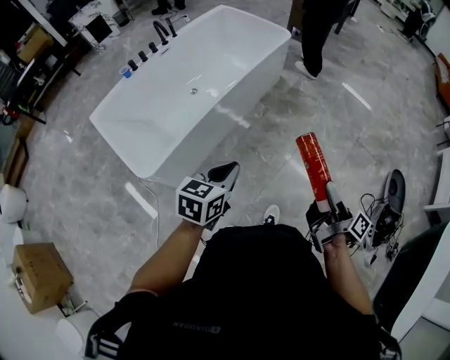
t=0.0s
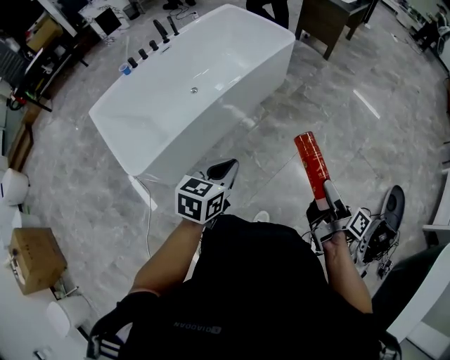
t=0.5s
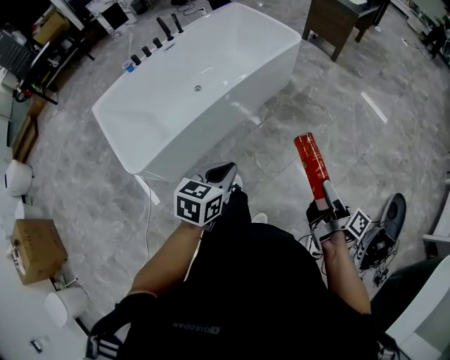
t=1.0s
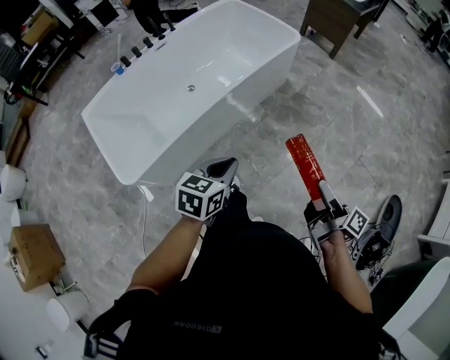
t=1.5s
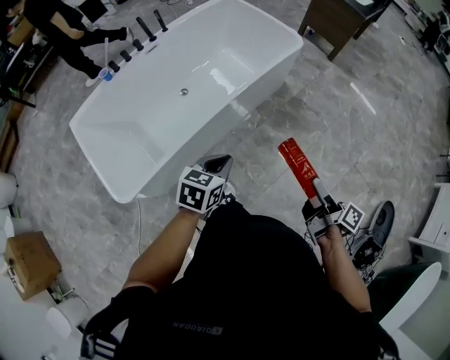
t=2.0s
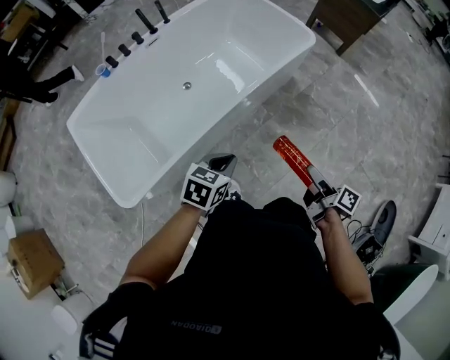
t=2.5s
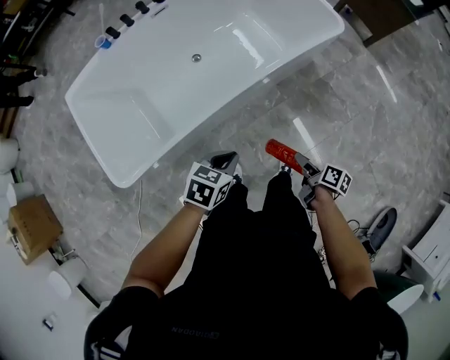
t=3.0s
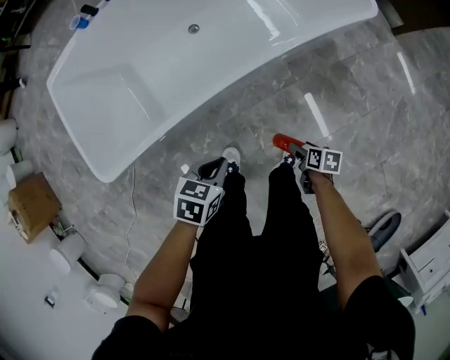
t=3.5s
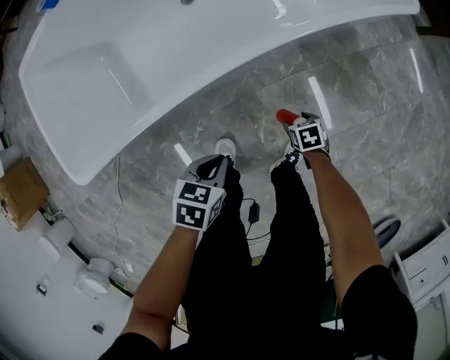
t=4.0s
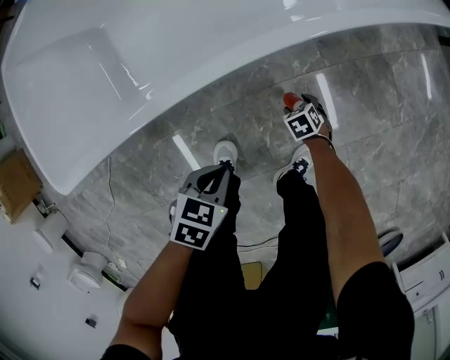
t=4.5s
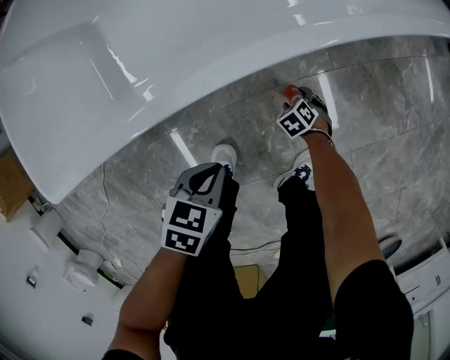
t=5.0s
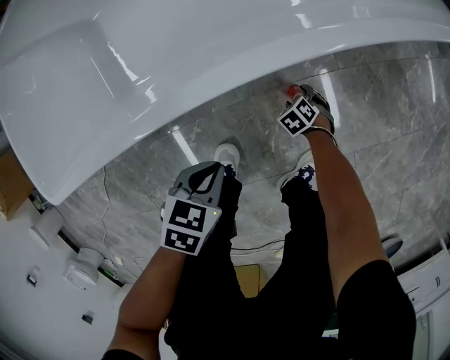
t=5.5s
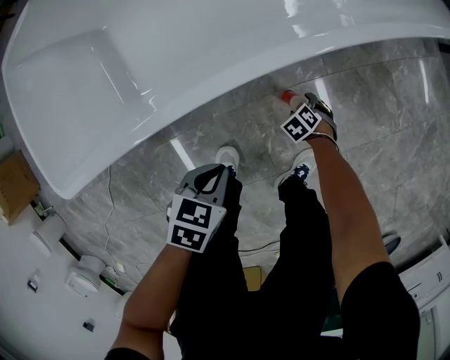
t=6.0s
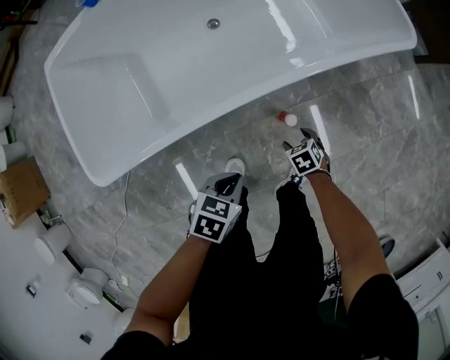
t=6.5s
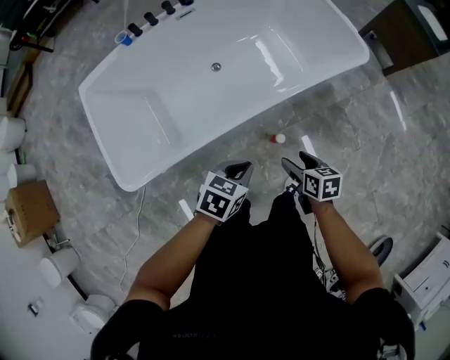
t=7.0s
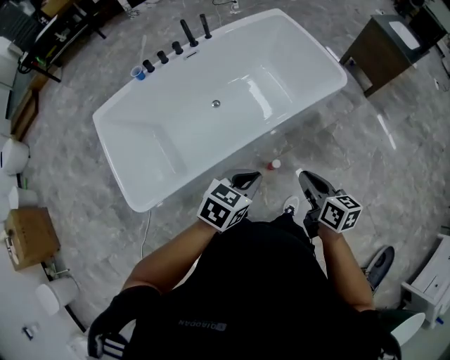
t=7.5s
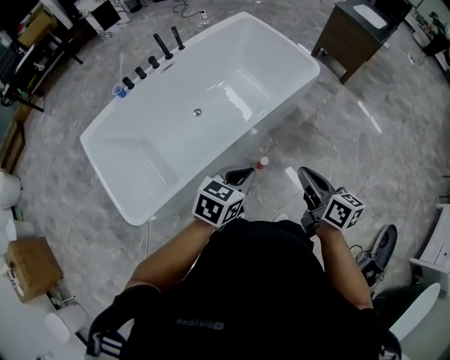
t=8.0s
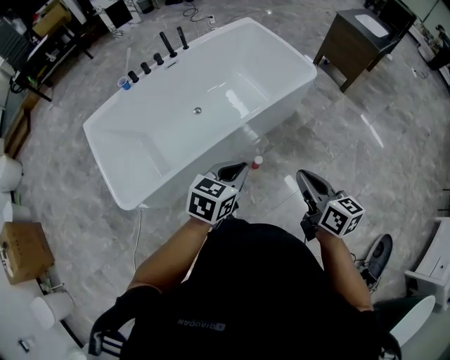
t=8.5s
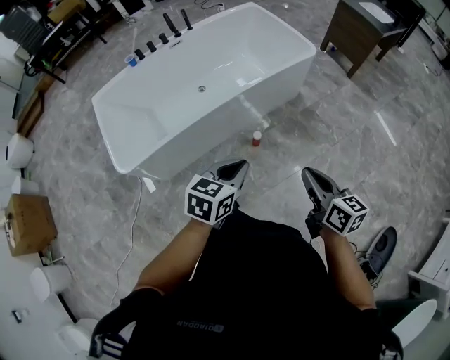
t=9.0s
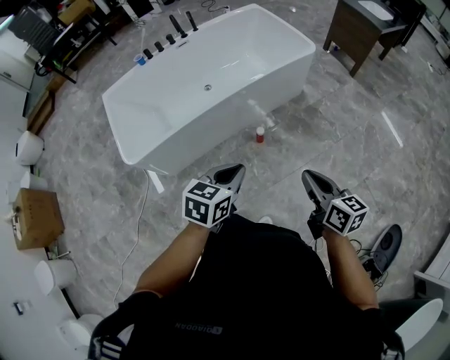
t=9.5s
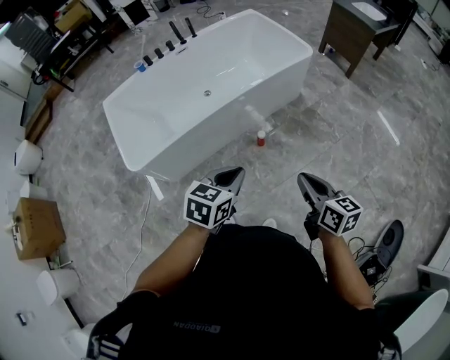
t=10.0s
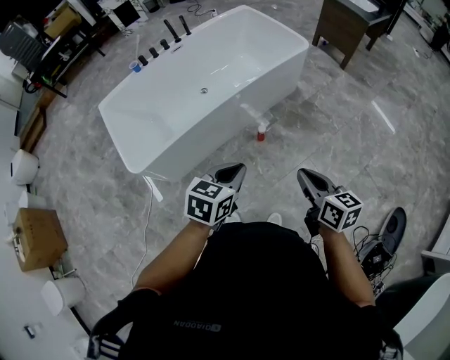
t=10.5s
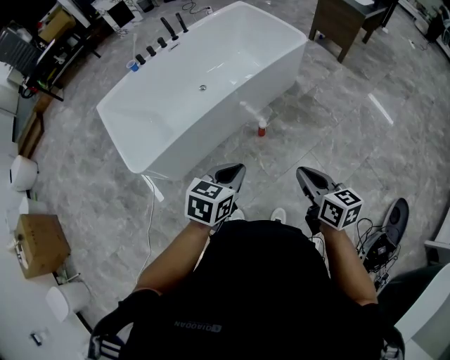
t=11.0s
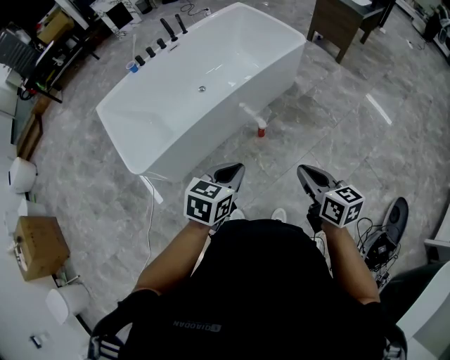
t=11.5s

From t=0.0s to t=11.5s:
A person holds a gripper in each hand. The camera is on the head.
From t=0.0s to t=2.0s: The left gripper ends up roughly 25 cm from where it was.
From t=2.0s to t=4.0s: The left gripper travels downward by some 35 cm, and turns by about 30 degrees.
From t=4.0s to t=6.0s: The left gripper travels downward by roughly 10 cm.
From t=6.0s to t=7.5s: The left gripper heads upward, covering some 40 cm, and changes its angle by about 30 degrees.
From t=7.5s to t=9.5s: The left gripper changes place by about 30 cm.
From t=9.5s to t=11.5s: The left gripper moves about 10 cm.

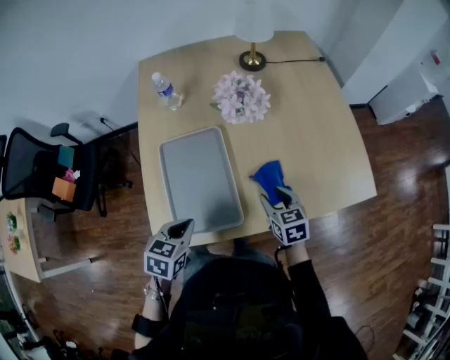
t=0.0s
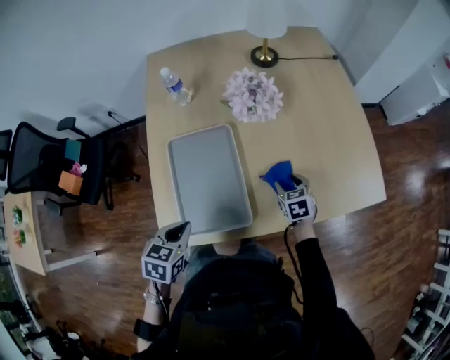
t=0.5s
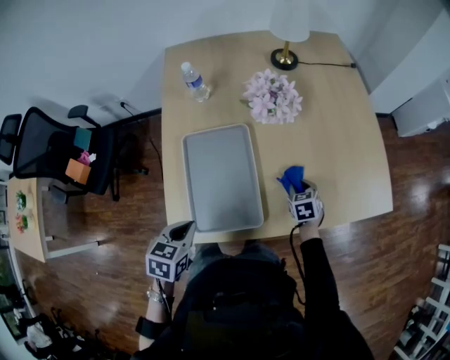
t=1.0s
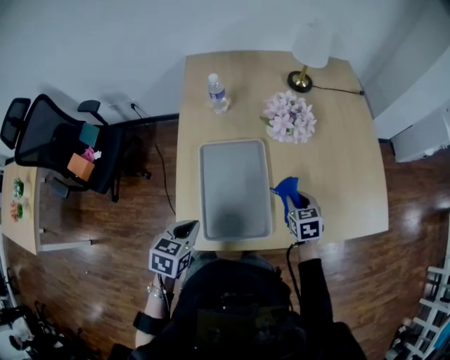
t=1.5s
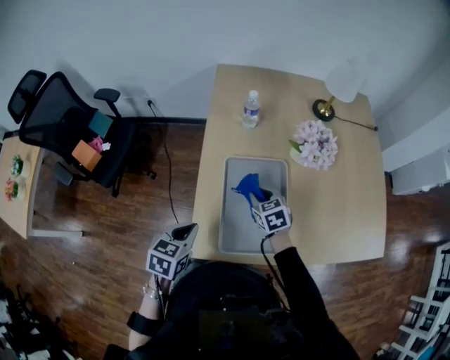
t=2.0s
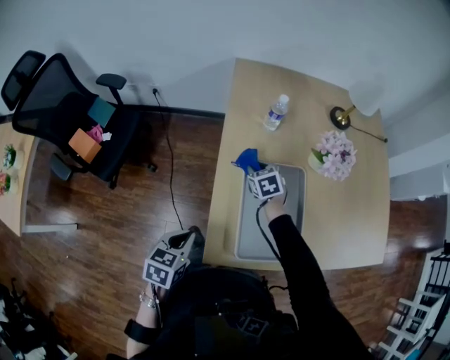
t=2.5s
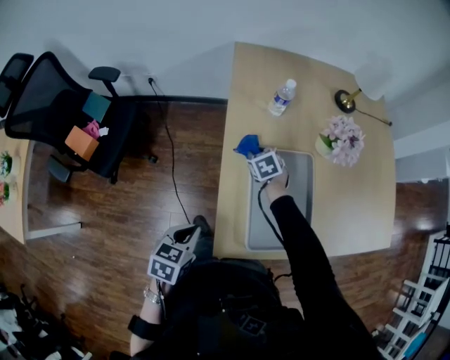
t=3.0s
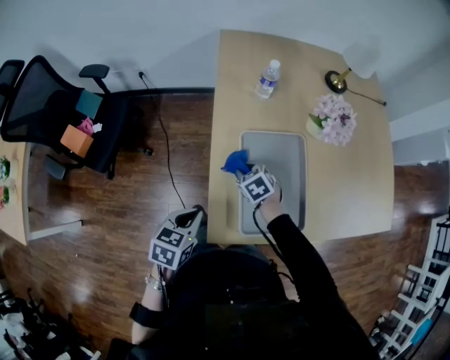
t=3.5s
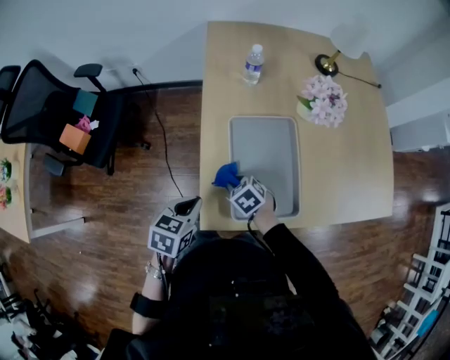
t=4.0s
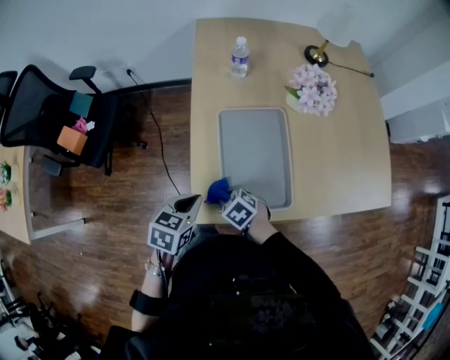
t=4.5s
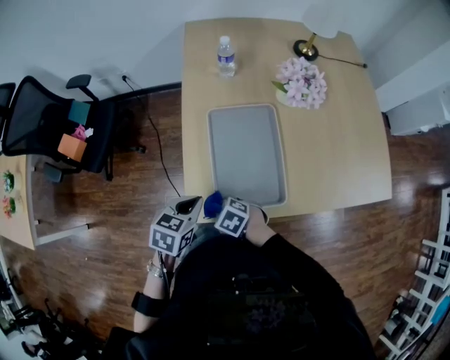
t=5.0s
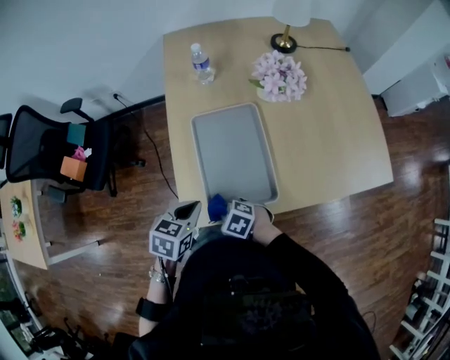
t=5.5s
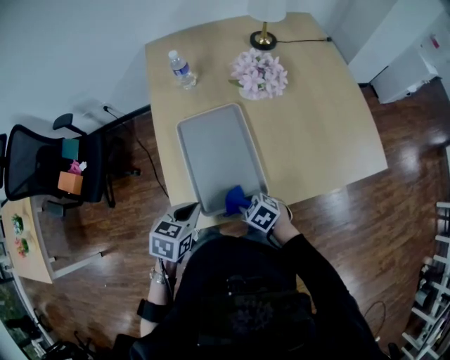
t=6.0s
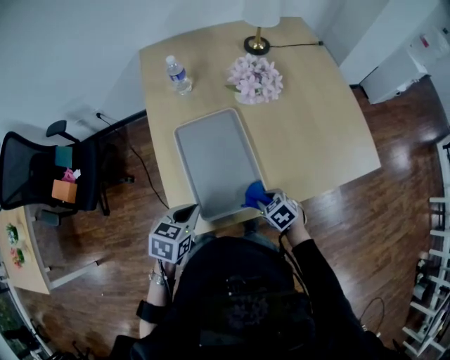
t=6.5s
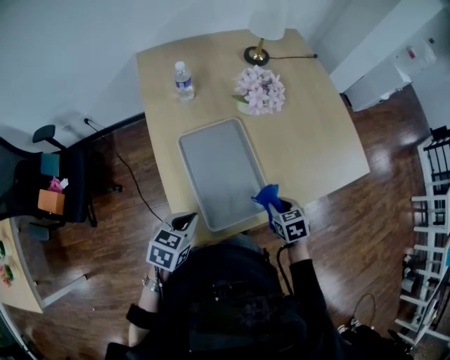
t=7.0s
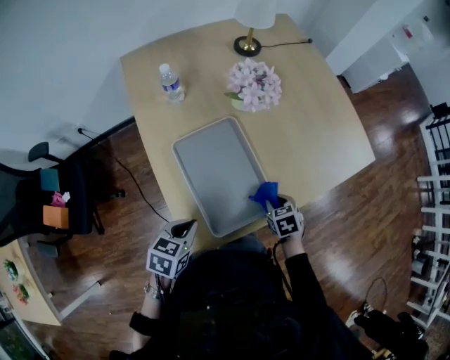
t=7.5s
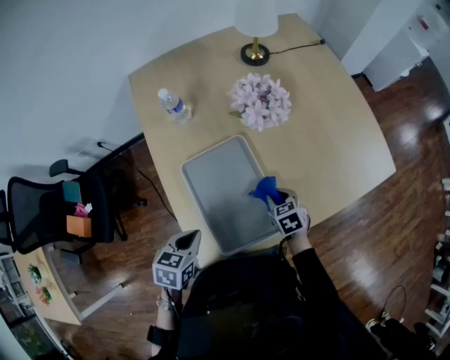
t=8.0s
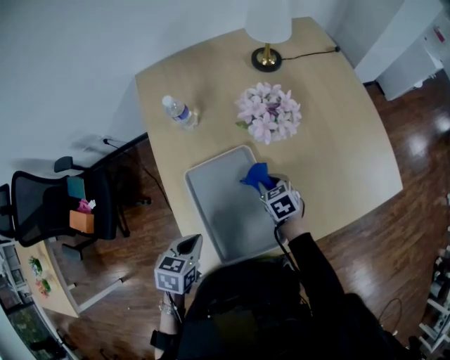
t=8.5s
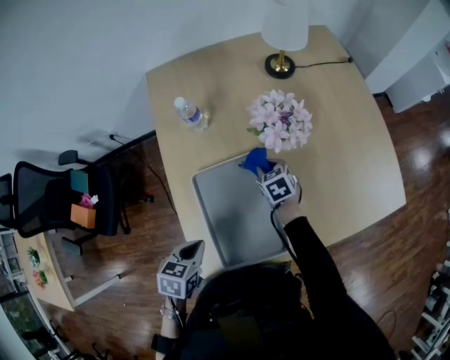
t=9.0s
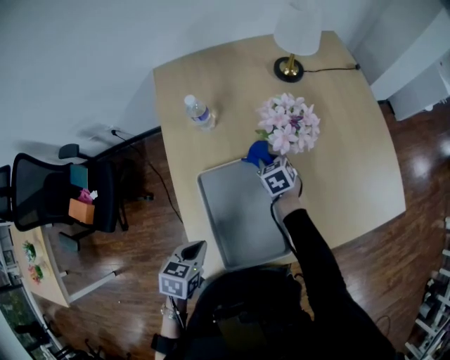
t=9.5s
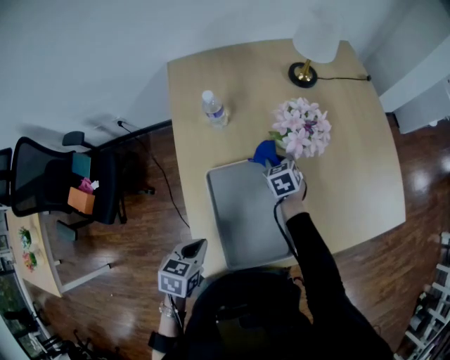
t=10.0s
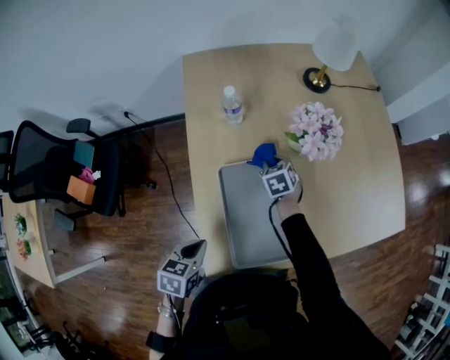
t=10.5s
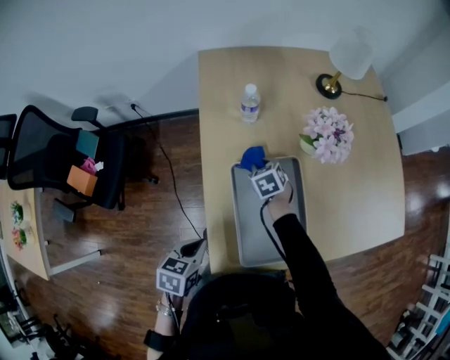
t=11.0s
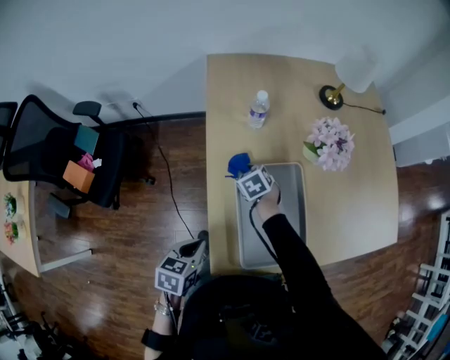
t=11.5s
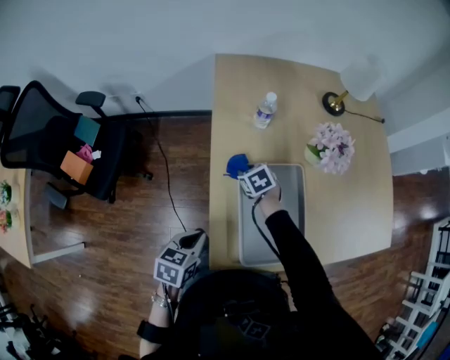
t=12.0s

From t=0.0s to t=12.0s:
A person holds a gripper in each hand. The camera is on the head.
From t=0.0s to t=2.0s: The right gripper shifts about 25 cm to the left, rotates approximately 20 degrees, and closes up; the left gripper goes roughly 20 cm to the left.
From t=2.0s to t=4.0s: The left gripper reaches roughly 10 cm to the left, then returns. The right gripper moves to the left, backward and downward, about 15 cm, and changes its angle by about 20 degrees.
From t=4.0s to t=6.0s: The right gripper ends up about 20 cm from where it was; the left gripper ends up some 15 cm from where it was.
From t=6.0s to t=8.0s: The right gripper changes place by roughly 20 cm, and rotates roughly 40 degrees. Meanwhile the left gripper changes place by about 10 cm.
From t=8.0s to t=10.0s: The right gripper travels forward and to the left by about 25 cm.
From t=10.0s to t=12.0s: The right gripper moves to the left, some 20 cm, and turns by about 20 degrees. The left gripper heads to the left, covering approximately 10 cm.

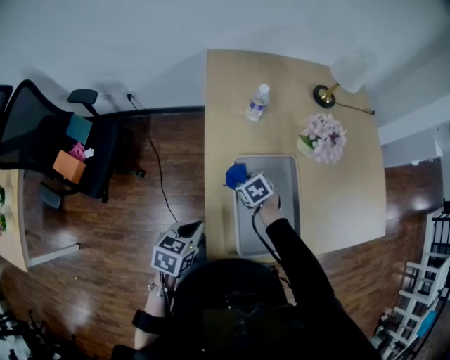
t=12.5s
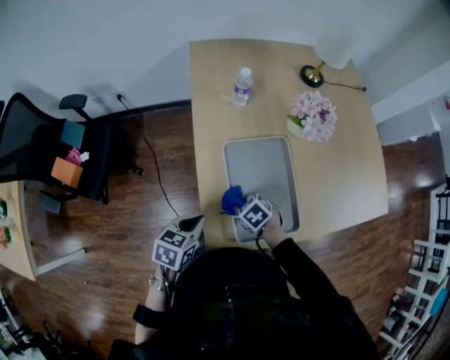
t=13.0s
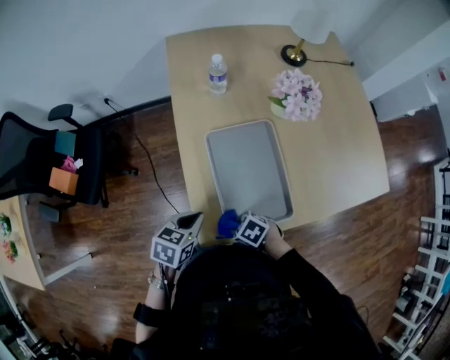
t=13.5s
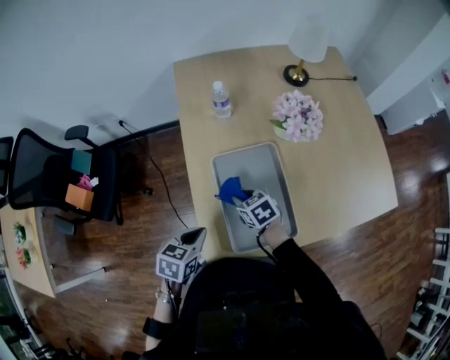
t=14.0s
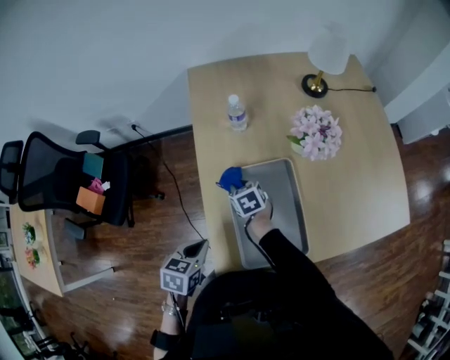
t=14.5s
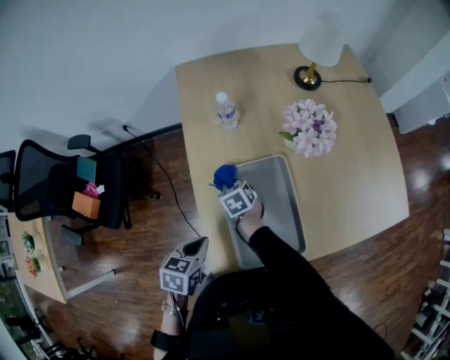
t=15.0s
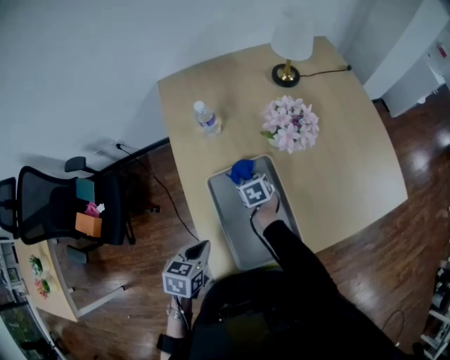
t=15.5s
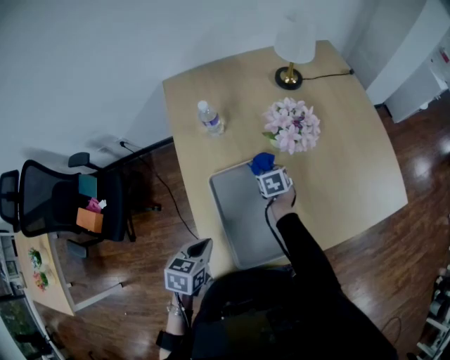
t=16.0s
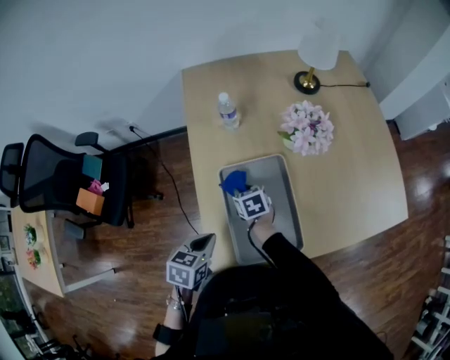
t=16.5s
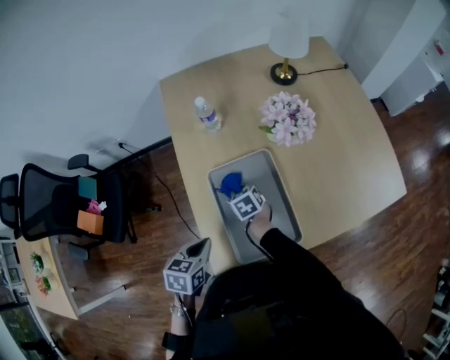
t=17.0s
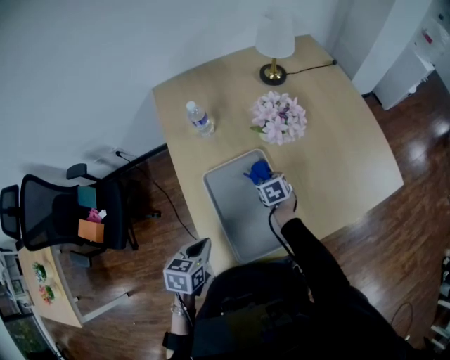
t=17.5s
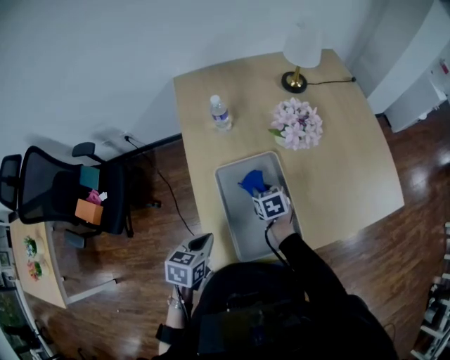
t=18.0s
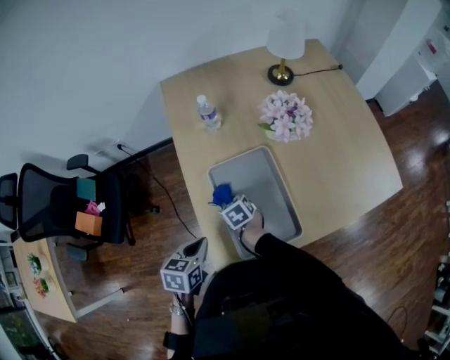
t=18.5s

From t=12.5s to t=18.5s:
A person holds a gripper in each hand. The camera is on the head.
From t=14.5s to t=16.5s: The right gripper reaches some 20 cm to the right, then returns.
From t=16.5s to t=18.5s: The right gripper moves backward, roughly 5 cm, and moves some 15 cm to the right and comes back.
